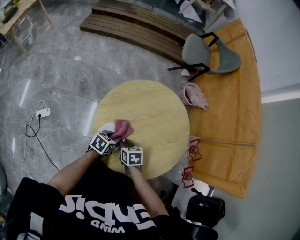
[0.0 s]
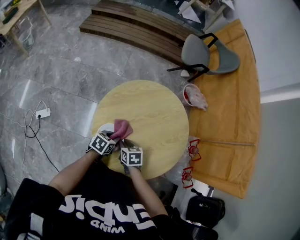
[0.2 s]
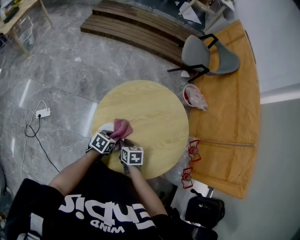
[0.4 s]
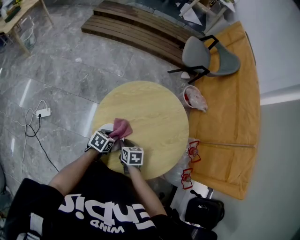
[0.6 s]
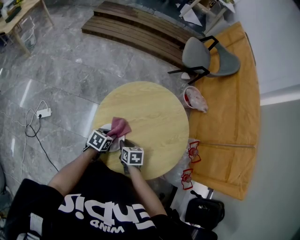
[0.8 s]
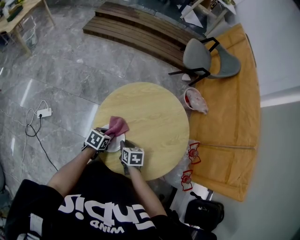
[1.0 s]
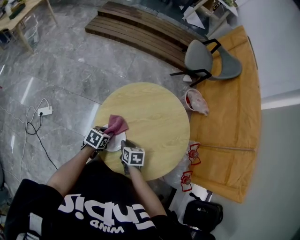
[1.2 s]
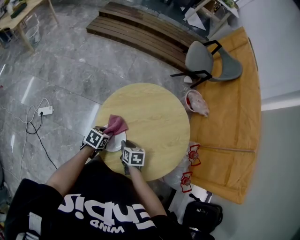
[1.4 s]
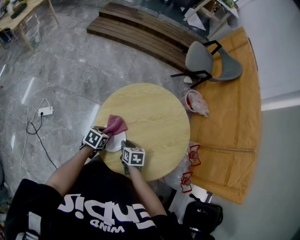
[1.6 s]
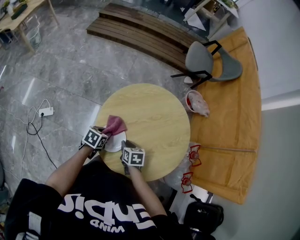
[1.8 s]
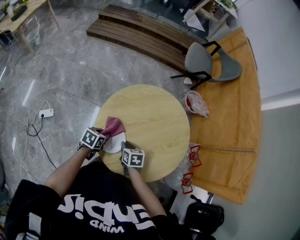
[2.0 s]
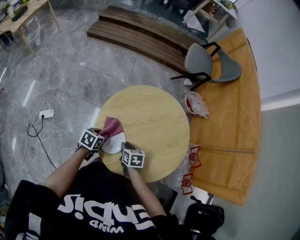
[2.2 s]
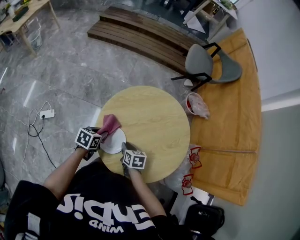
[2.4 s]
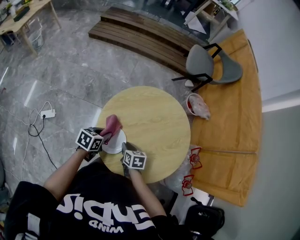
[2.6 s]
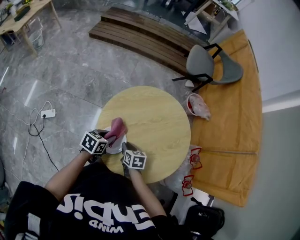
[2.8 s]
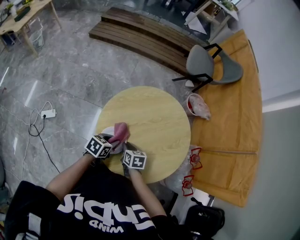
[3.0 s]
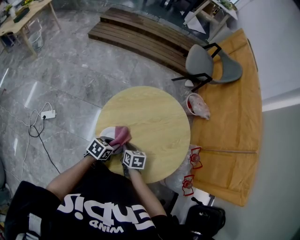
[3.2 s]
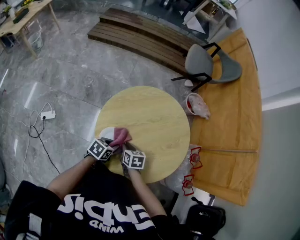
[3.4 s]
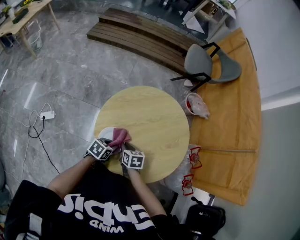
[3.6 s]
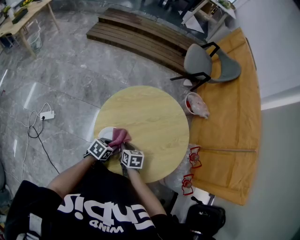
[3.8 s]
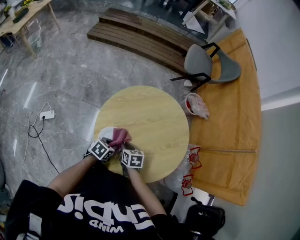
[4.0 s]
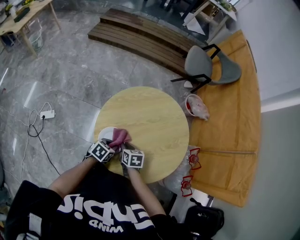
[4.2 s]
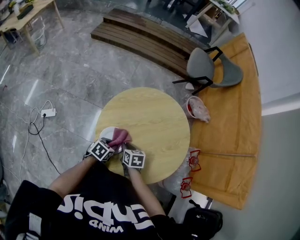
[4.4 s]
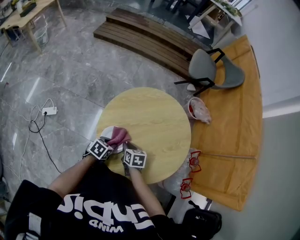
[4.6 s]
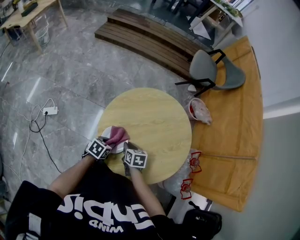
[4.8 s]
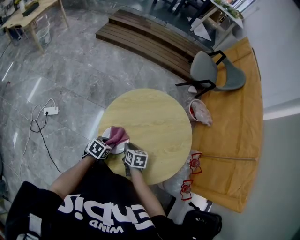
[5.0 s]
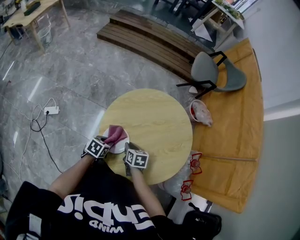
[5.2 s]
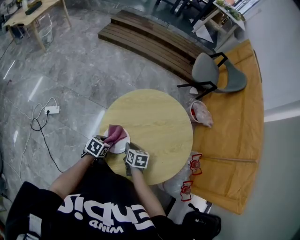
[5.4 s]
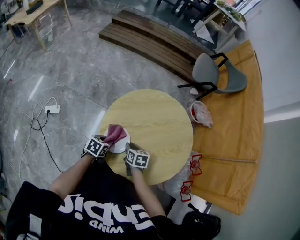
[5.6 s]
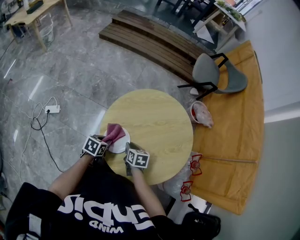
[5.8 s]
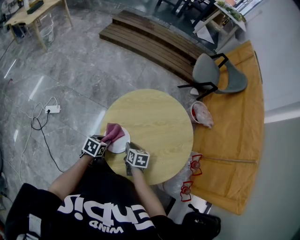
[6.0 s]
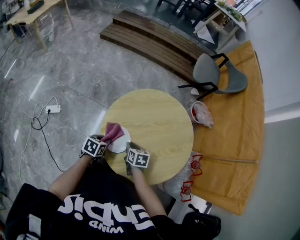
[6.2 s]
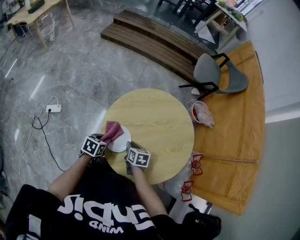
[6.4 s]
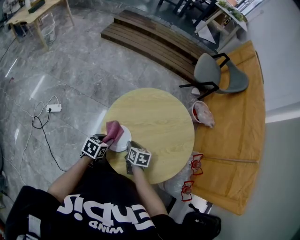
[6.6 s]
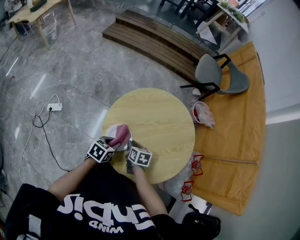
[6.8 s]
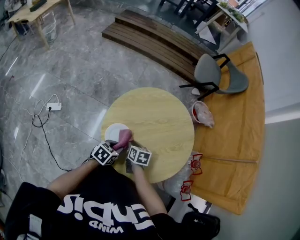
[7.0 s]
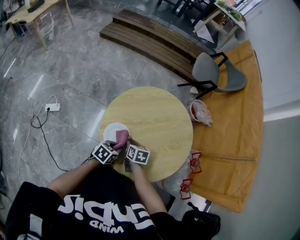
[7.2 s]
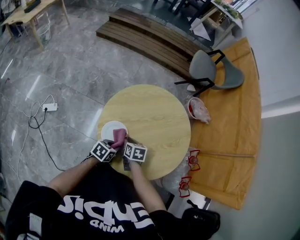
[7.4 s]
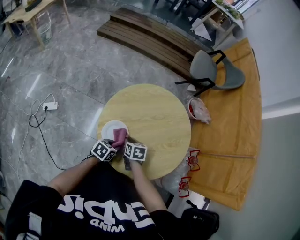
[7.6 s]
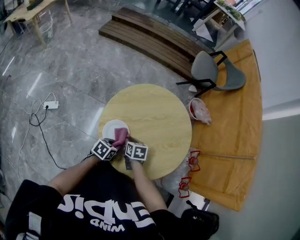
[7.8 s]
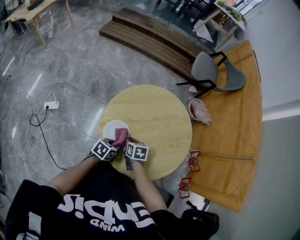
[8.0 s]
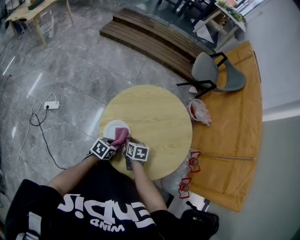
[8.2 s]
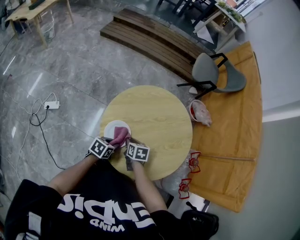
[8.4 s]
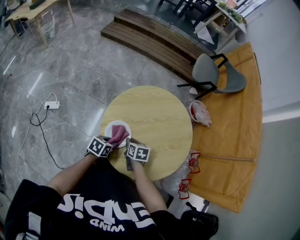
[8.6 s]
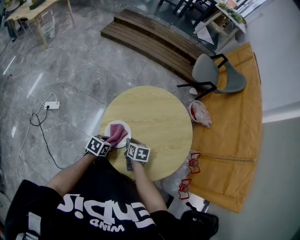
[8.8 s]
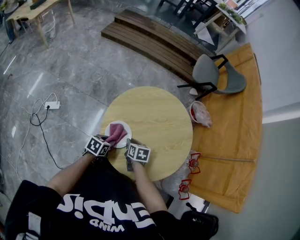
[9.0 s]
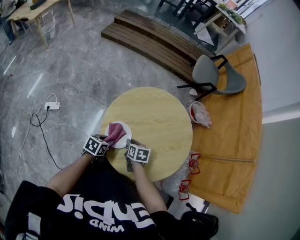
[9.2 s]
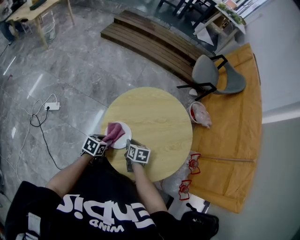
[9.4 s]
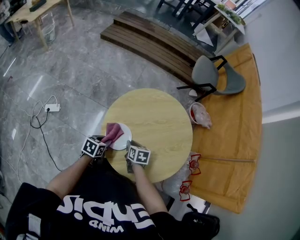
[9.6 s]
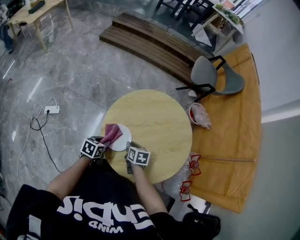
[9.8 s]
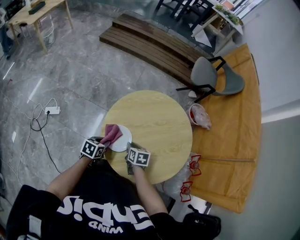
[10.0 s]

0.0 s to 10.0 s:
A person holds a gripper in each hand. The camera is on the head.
0.0 to 1.4 s: The left gripper heads to the left, covering some 5 cm.
1.4 to 2.8 s: The left gripper moves about 5 cm.
2.8 to 4.2 s: The left gripper travels downward by approximately 5 cm.
4.2 to 5.8 s: The left gripper moves to the left, about 5 cm.
5.8 to 7.2 s: The left gripper heads to the right, covering some 10 cm.
7.2 to 8.6 s: The grippers move only a little.
8.6 to 10.0 s: The left gripper is displaced to the left by about 5 cm.

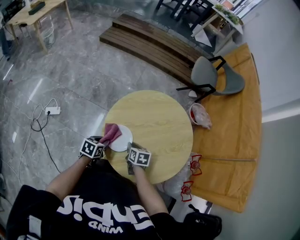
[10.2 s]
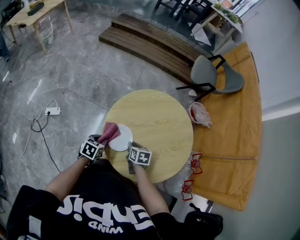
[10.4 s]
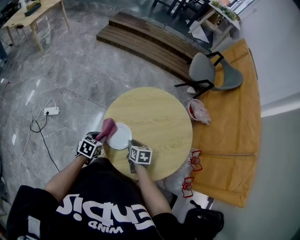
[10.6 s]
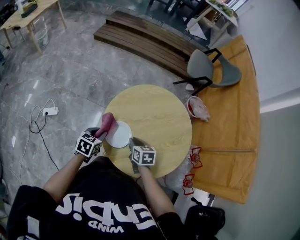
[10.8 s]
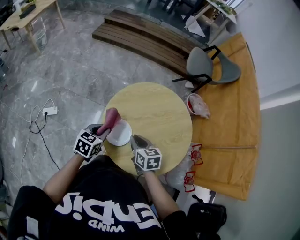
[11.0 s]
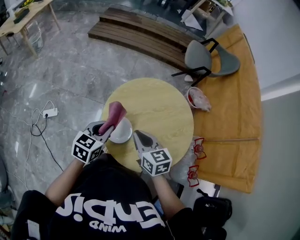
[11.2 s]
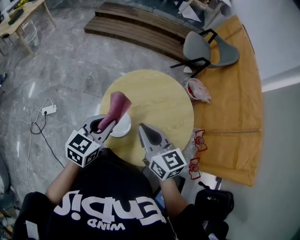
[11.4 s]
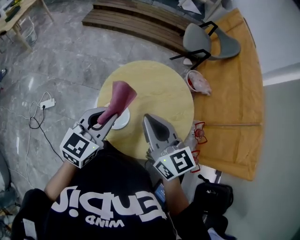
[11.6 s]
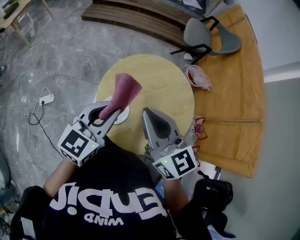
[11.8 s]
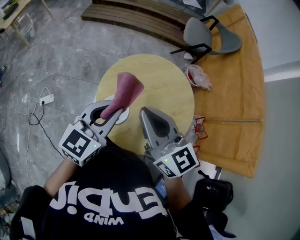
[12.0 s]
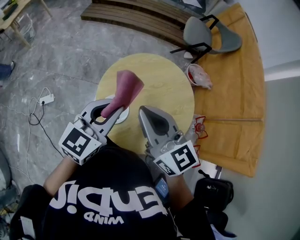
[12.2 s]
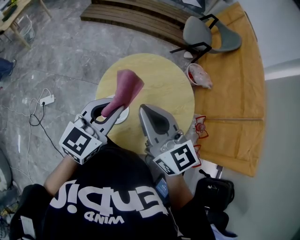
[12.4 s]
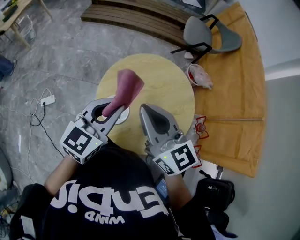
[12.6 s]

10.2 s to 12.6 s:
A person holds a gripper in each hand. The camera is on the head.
10.2 to 11.4 s: The grippers both shift upward by roughly 25 cm. The right gripper tips its fingers upward by some 30 degrees. The left gripper turns by approximately 40 degrees.
11.4 to 12.6 s: The left gripper is displaced upward and to the right by some 10 cm, while the right gripper moves upward, about 10 cm.

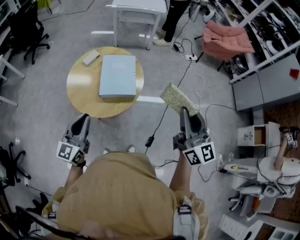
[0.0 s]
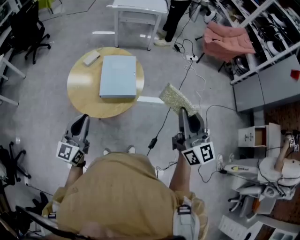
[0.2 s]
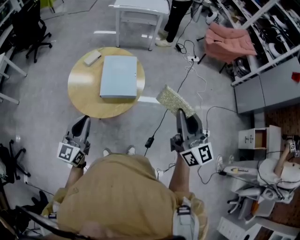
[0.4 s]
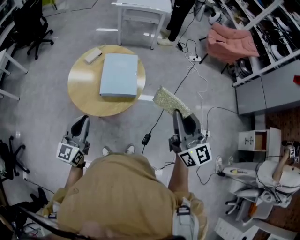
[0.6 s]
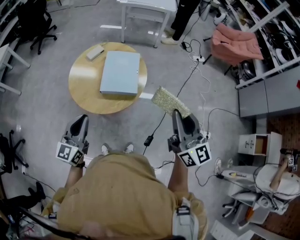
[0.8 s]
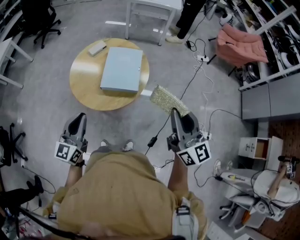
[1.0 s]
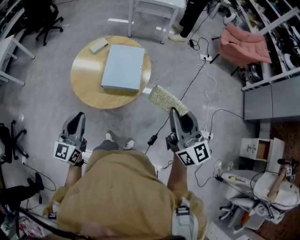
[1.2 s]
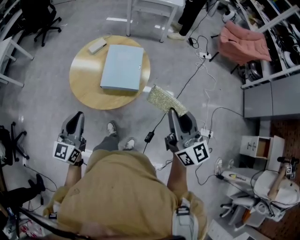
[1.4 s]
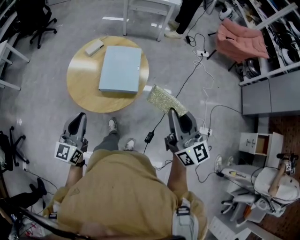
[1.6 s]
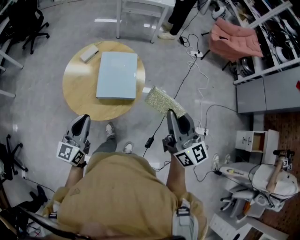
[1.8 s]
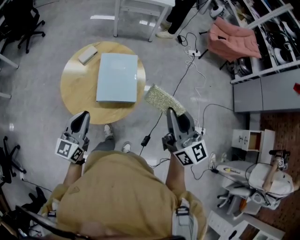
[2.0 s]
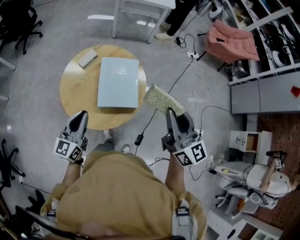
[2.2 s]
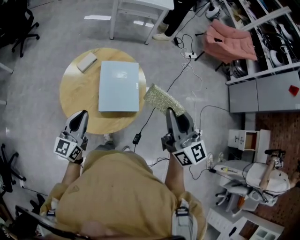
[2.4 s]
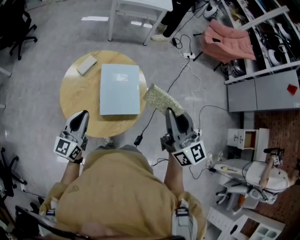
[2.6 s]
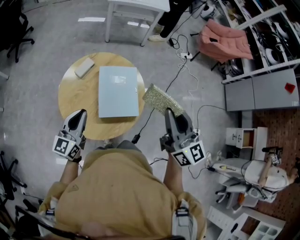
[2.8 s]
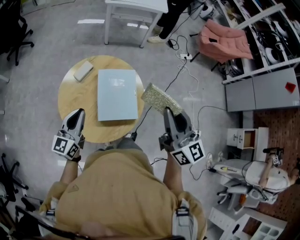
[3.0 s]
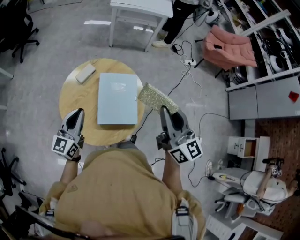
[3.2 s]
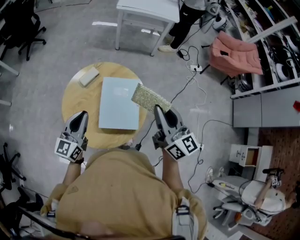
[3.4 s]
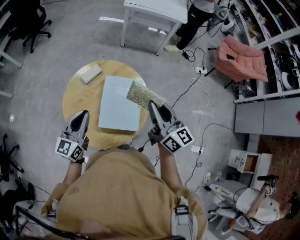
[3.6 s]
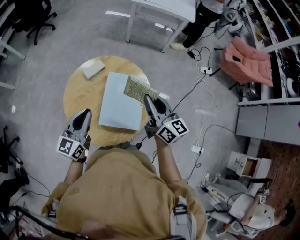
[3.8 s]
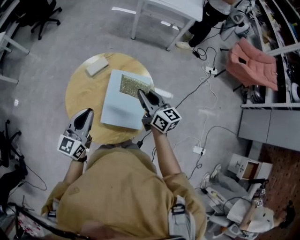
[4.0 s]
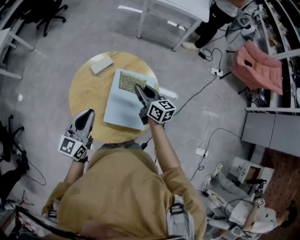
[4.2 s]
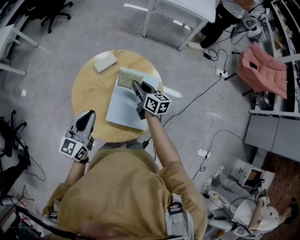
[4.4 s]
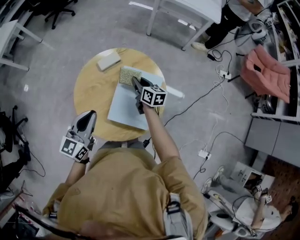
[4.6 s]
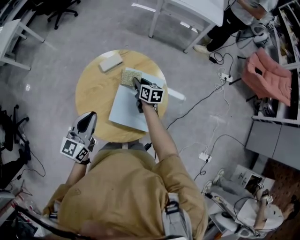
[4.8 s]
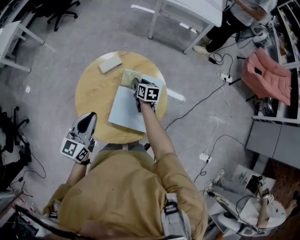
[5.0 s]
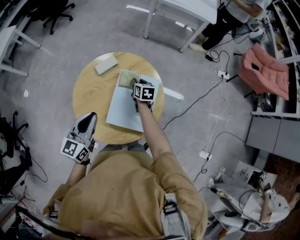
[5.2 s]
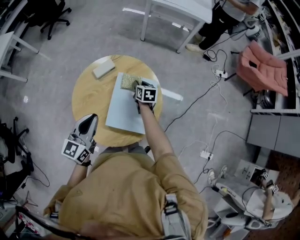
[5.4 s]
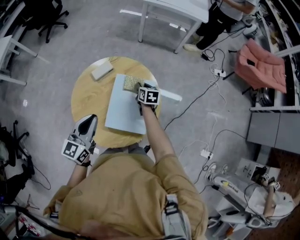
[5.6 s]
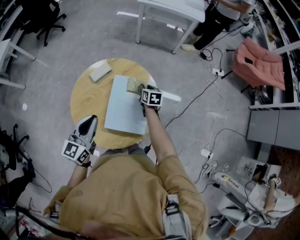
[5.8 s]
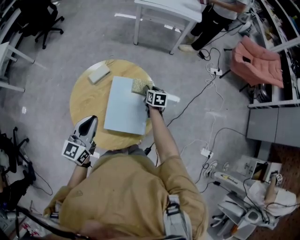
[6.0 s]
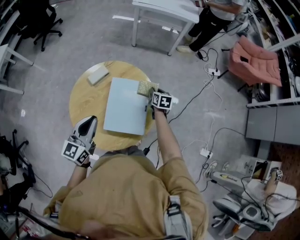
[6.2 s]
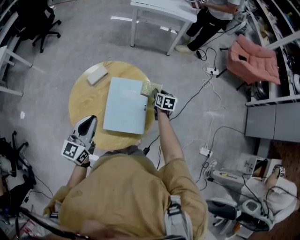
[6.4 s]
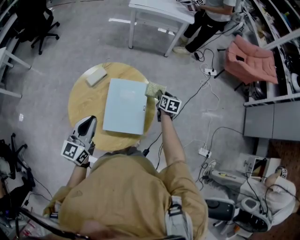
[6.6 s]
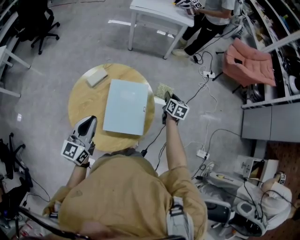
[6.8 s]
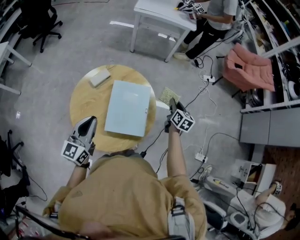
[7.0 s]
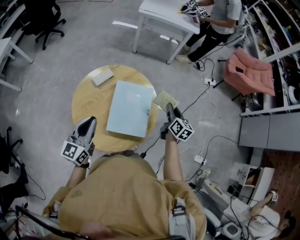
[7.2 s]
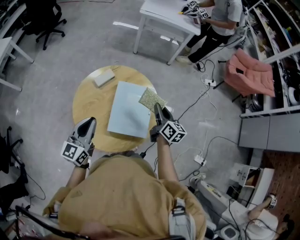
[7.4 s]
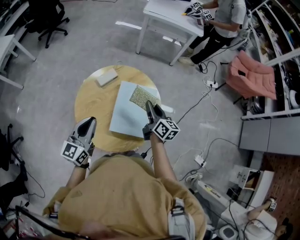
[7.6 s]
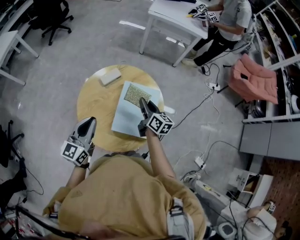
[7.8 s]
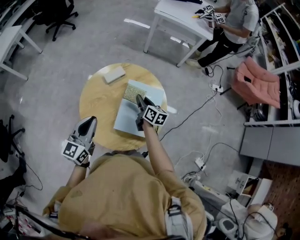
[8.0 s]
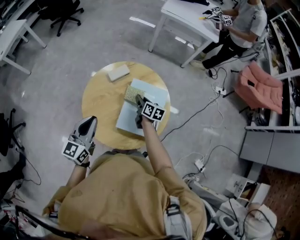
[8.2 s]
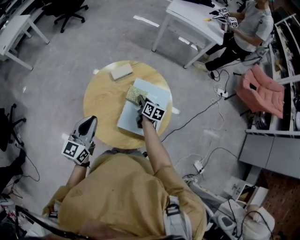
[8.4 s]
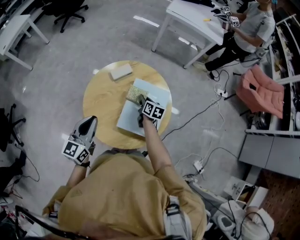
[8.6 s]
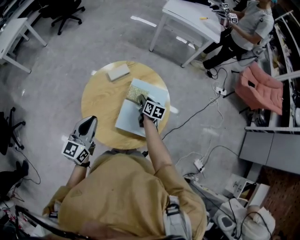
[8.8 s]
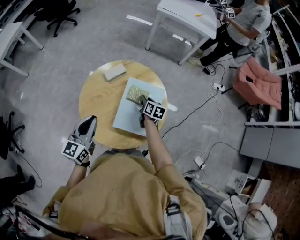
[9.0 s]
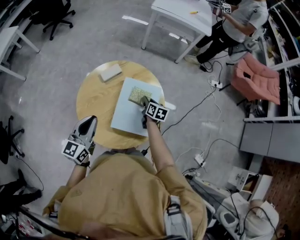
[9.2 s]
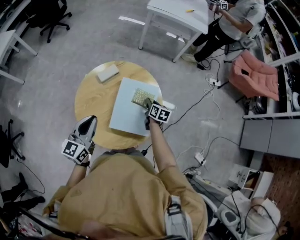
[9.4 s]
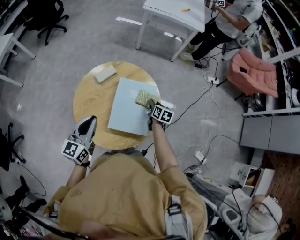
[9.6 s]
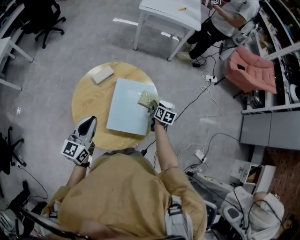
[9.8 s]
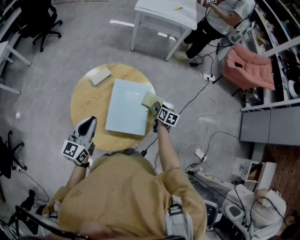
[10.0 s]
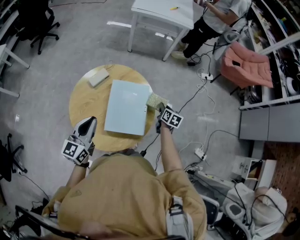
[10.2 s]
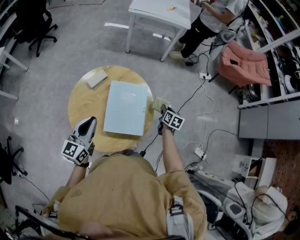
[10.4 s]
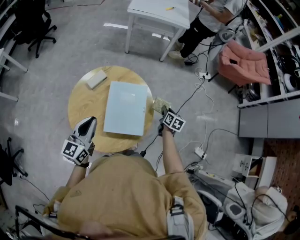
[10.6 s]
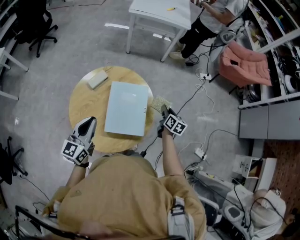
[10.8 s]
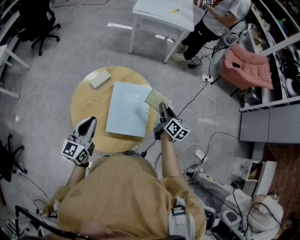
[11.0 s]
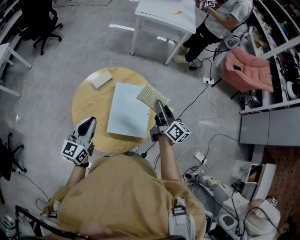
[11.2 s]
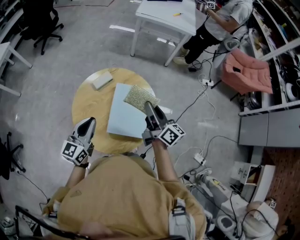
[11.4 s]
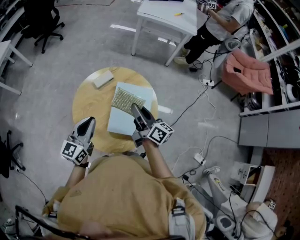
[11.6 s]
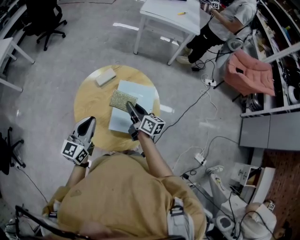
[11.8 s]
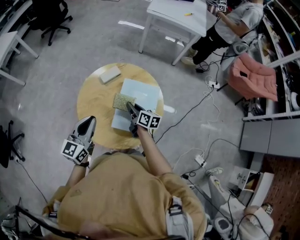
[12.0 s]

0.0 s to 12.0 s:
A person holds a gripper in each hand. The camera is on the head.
0.0 to 1.6 s: The left gripper shifts by about 5 cm; the right gripper travels forward and downward by roughly 10 cm.
1.6 to 3.0 s: Both grippers travel together forward and to the left, approximately 25 cm.
3.0 to 4.4 s: The right gripper moves downward and forward, approximately 40 cm, and changes its angle by approximately 40 degrees, while the left gripper moves to the right and forward, roughly 10 cm.
4.4 to 6.0 s: The right gripper travels to the right and downward by about 15 cm, and rotates roughly 30 degrees.
6.0 to 7.6 s: The right gripper travels upward and backward by about 20 cm, moves some 15 cm to the right and comes back, and angles its fingers upward, by about 30 degrees; the left gripper is displaced to the left by some 5 cm.
7.6 to 9.0 s: The left gripper moves approximately 5 cm. The right gripper is displaced downward by approximately 15 cm, and turns by about 30 degrees.
9.0 to 10.4 s: The left gripper shifts about 10 cm to the right; the right gripper shifts some 25 cm to the right, and swivels some 20 degrees.
10.4 to 12.0 s: The left gripper travels to the left by about 5 cm, while the right gripper moves to the left, about 30 cm, and turns by approximately 40 degrees.
